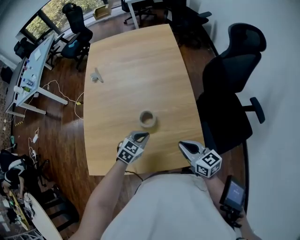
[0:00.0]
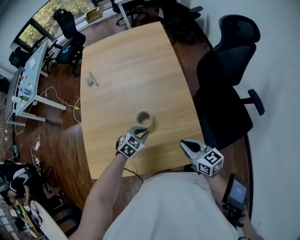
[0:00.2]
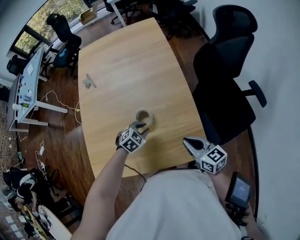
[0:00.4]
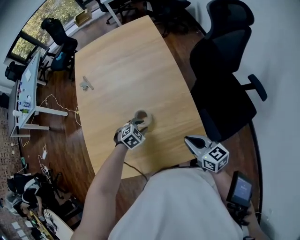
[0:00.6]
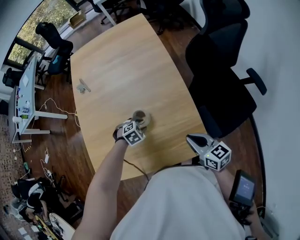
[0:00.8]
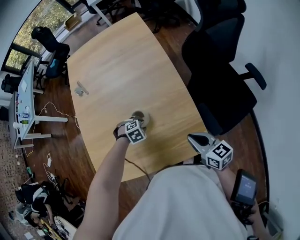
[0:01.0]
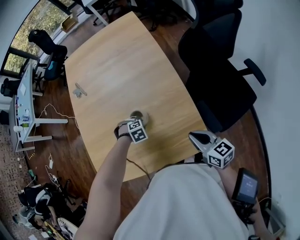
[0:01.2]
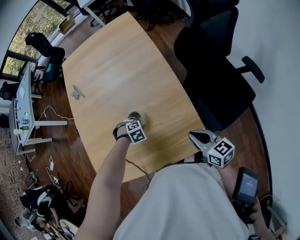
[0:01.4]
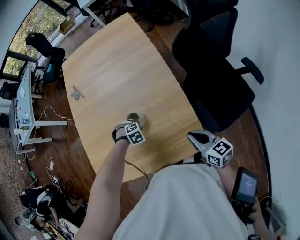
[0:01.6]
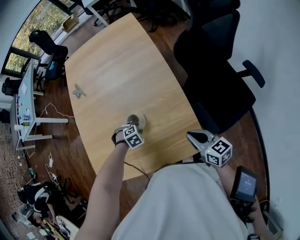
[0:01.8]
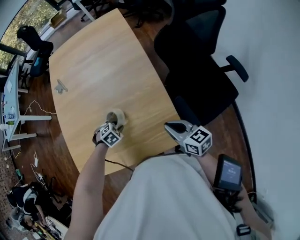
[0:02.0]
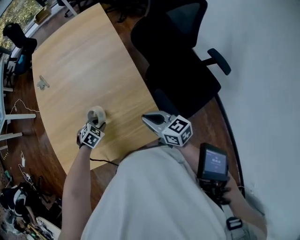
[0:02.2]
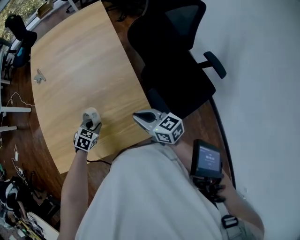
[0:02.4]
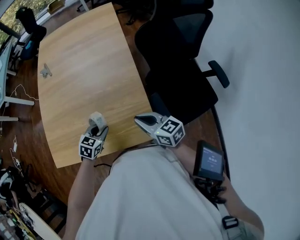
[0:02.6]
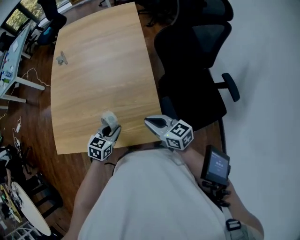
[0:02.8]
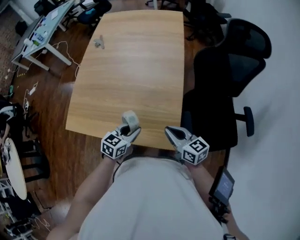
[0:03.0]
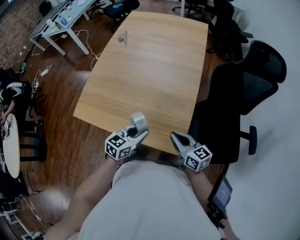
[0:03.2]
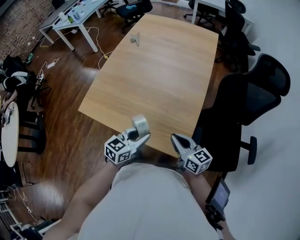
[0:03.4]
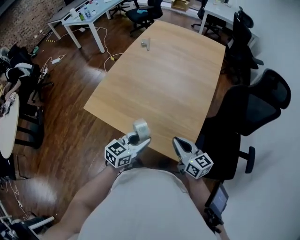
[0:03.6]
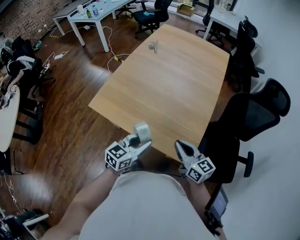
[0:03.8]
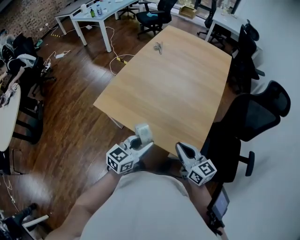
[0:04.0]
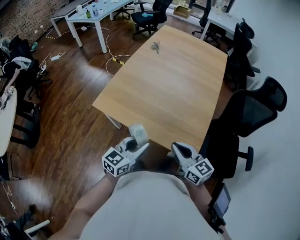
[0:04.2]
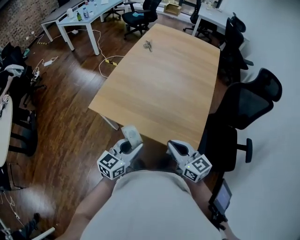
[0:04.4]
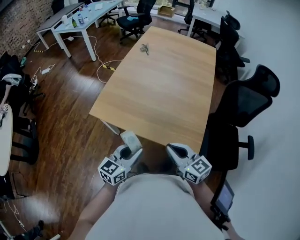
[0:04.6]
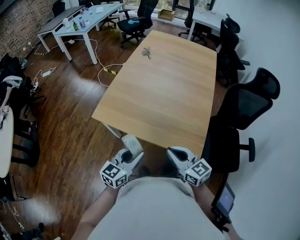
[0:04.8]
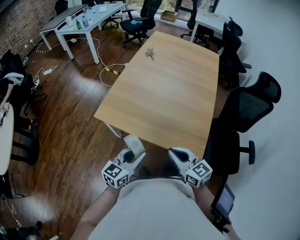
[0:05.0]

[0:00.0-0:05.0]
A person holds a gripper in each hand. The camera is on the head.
0:00.0 to 0:01.6: The left gripper goes about 15 cm downward, tilts its fingers roughly 50 degrees downward, and opens its fingers; the right gripper shifts by some 10 cm.
0:01.6 to 0:03.4: The left gripper heads upward, covering roughly 20 cm, and points its fingers about 70 degrees further upward; the right gripper changes place by some 5 cm, and rotates roughly 30 degrees.
0:03.4 to 0:05.0: Both grippers travel together to the left and backward, roughly 20 cm.

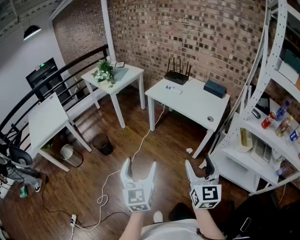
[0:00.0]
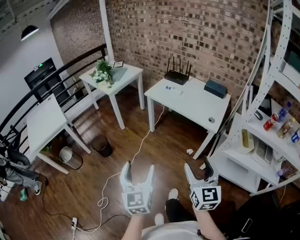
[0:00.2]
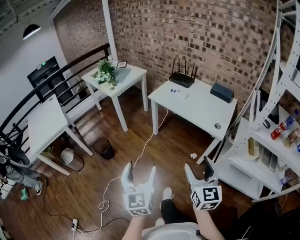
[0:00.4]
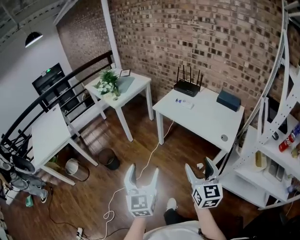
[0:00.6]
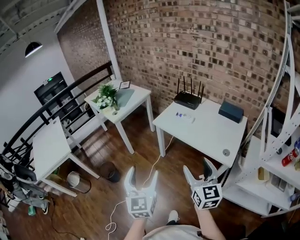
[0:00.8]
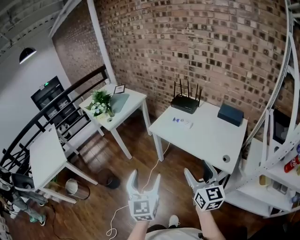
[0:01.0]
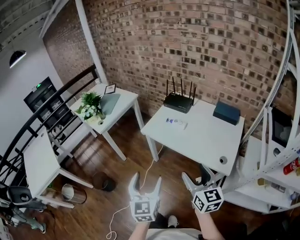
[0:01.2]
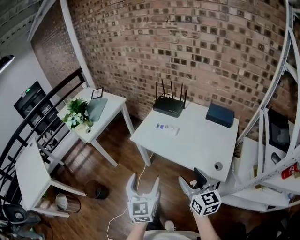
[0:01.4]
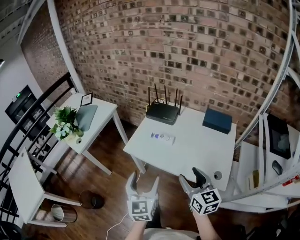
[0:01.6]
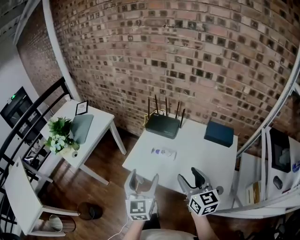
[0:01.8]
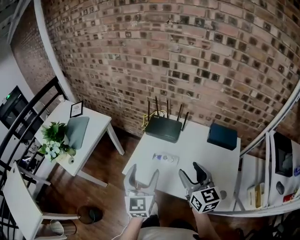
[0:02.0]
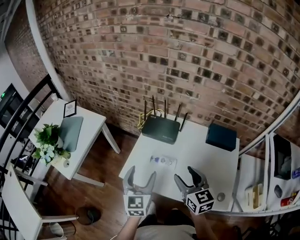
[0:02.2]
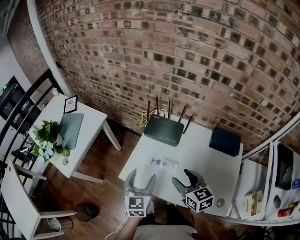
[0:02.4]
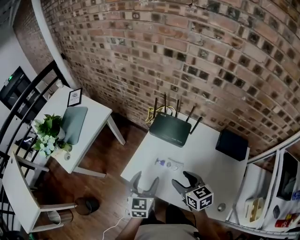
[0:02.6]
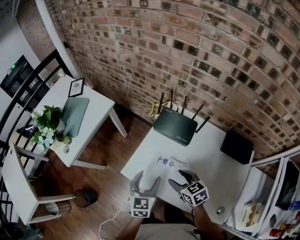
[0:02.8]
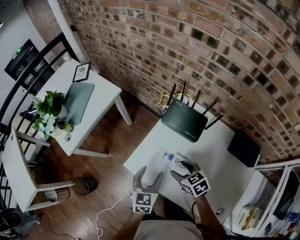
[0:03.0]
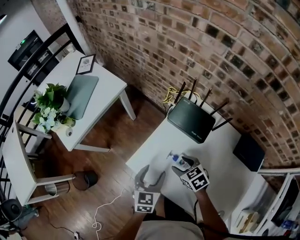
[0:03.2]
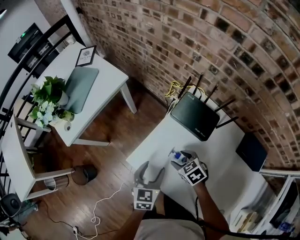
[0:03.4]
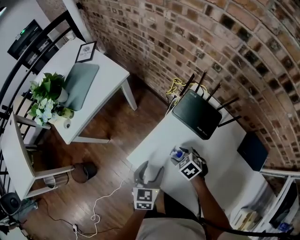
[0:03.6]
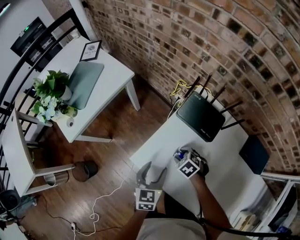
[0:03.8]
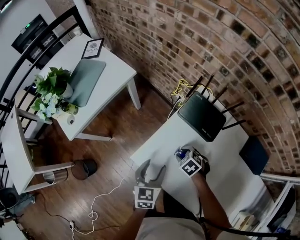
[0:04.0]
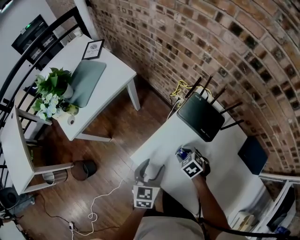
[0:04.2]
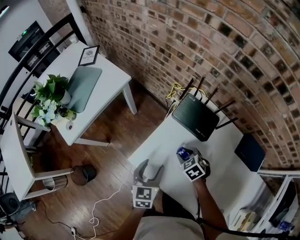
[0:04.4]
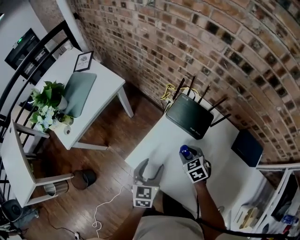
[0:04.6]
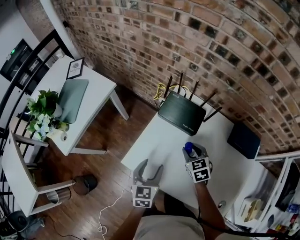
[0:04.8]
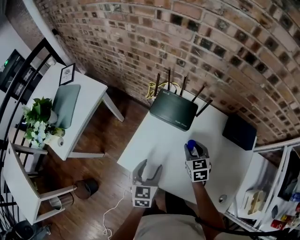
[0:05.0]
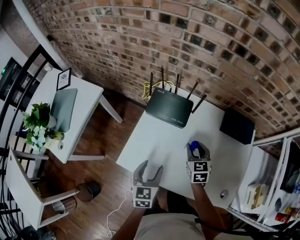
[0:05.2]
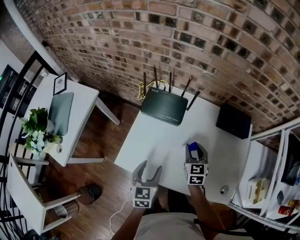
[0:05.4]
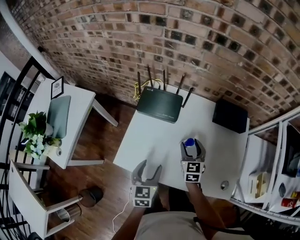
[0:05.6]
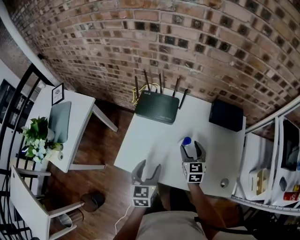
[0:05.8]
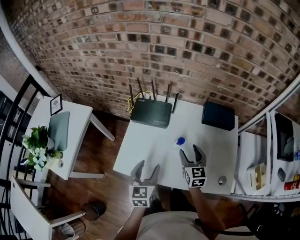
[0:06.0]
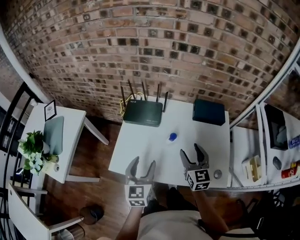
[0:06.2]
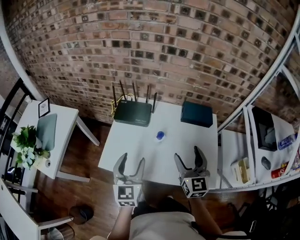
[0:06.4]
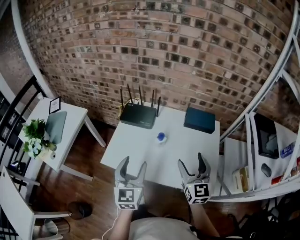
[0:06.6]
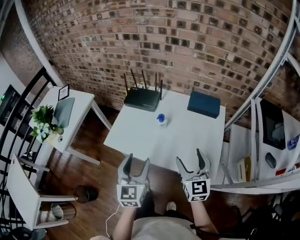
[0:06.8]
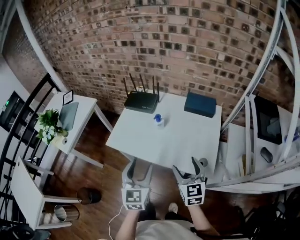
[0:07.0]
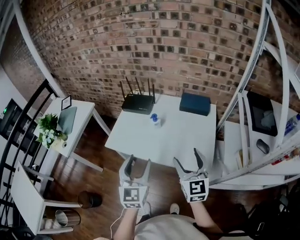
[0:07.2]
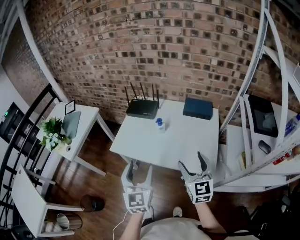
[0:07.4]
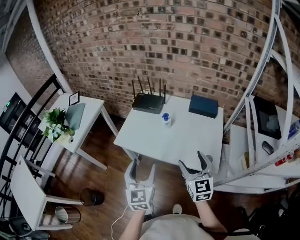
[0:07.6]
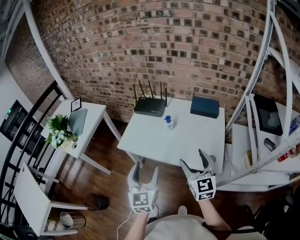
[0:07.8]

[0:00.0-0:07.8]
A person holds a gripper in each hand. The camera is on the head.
0:00.0 to 0:01.6: The two grippers travel together, forward, some 50 cm.
0:01.6 to 0:03.2: Both grippers move forward and downward, some 40 cm. The right gripper tips its fingers downward by roughly 40 degrees; the left gripper rotates approximately 20 degrees.
0:03.2 to 0:04.6: The right gripper reaches some 10 cm downward, then returns, and closes its fingers.
0:04.6 to 0:06.2: The left gripper shifts by approximately 15 cm, and turns by about 20 degrees; the right gripper ends up about 25 cm from where it was, angles its fingers upward, by approximately 40 degrees, and opens its fingers.
0:06.2 to 0:07.8: Both grippers move backward, approximately 25 cm.

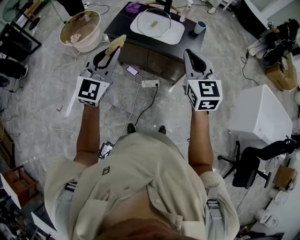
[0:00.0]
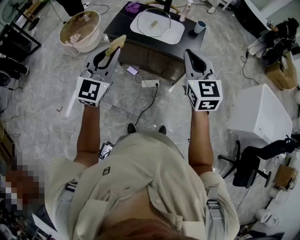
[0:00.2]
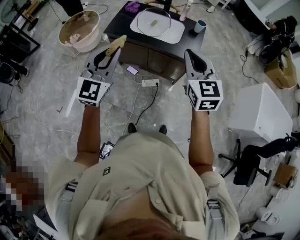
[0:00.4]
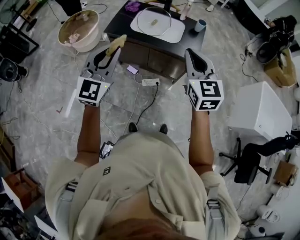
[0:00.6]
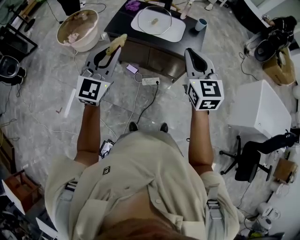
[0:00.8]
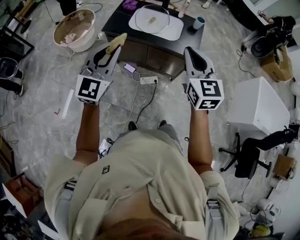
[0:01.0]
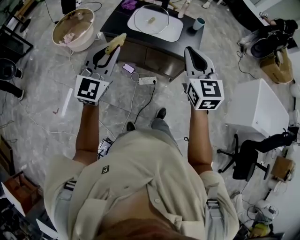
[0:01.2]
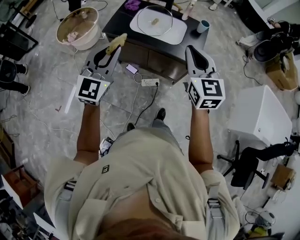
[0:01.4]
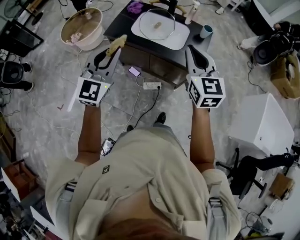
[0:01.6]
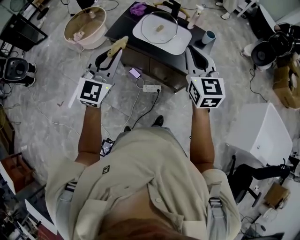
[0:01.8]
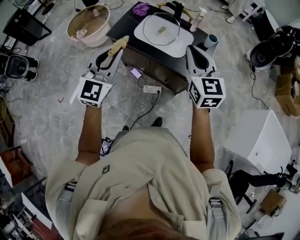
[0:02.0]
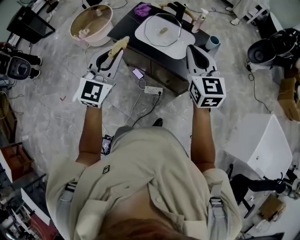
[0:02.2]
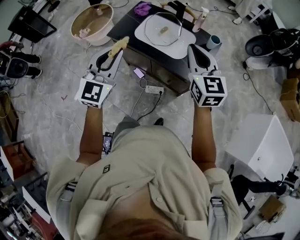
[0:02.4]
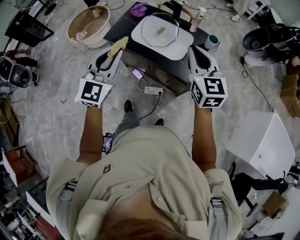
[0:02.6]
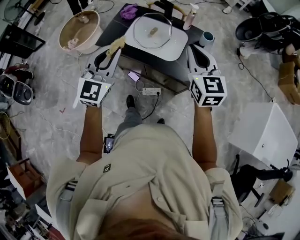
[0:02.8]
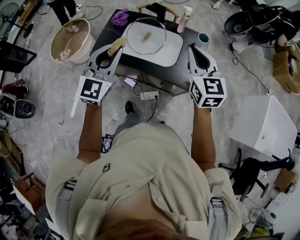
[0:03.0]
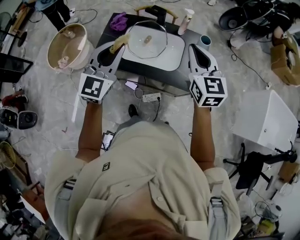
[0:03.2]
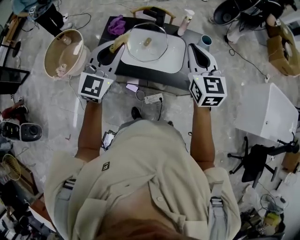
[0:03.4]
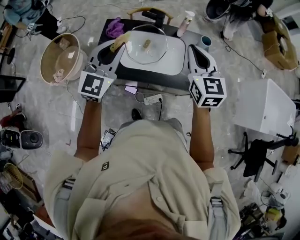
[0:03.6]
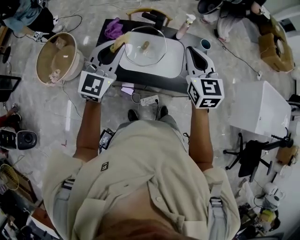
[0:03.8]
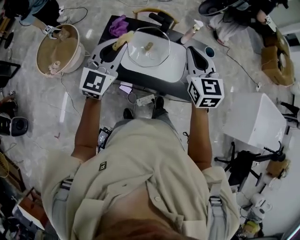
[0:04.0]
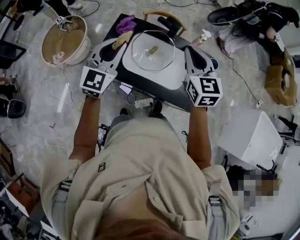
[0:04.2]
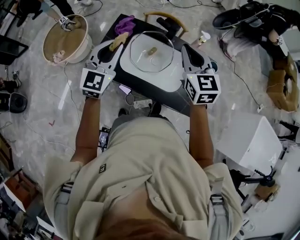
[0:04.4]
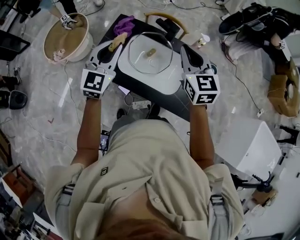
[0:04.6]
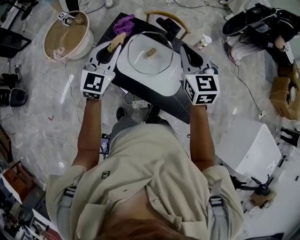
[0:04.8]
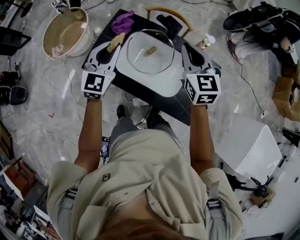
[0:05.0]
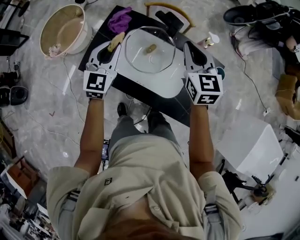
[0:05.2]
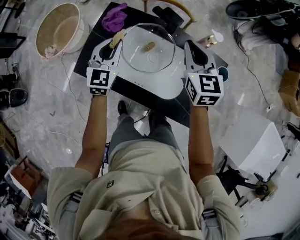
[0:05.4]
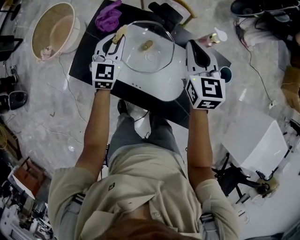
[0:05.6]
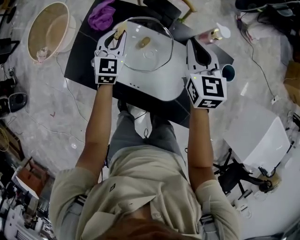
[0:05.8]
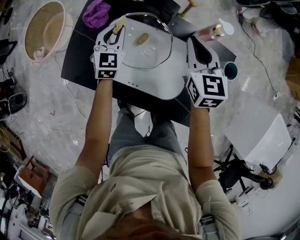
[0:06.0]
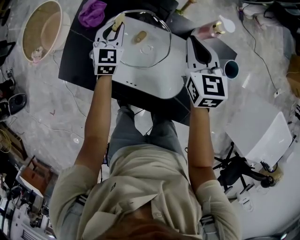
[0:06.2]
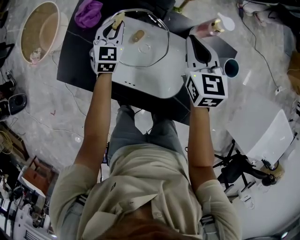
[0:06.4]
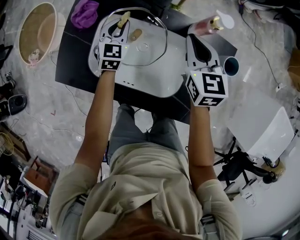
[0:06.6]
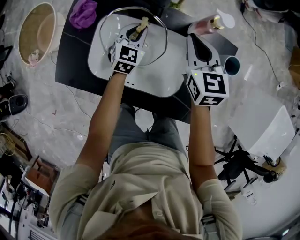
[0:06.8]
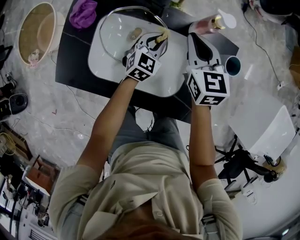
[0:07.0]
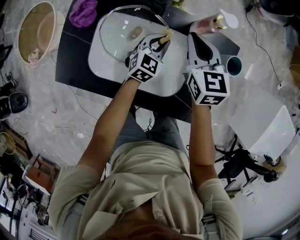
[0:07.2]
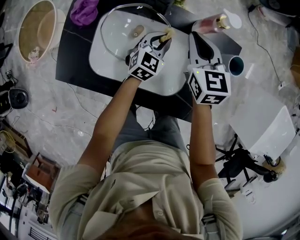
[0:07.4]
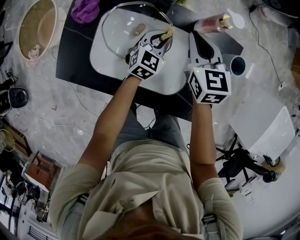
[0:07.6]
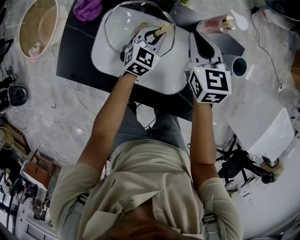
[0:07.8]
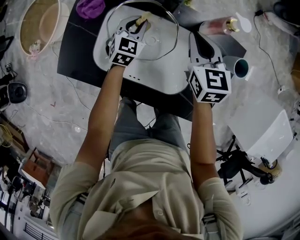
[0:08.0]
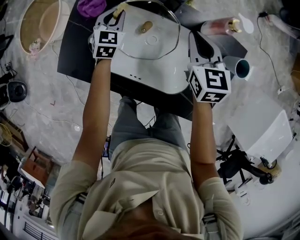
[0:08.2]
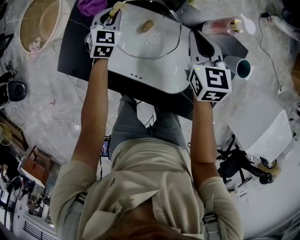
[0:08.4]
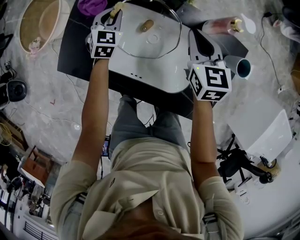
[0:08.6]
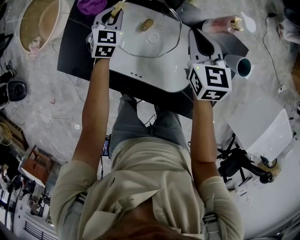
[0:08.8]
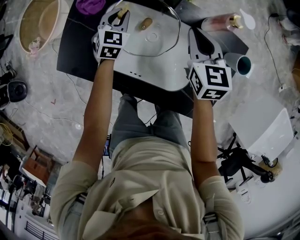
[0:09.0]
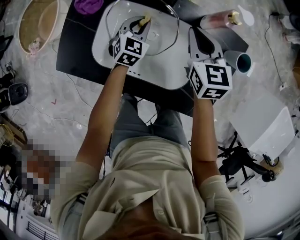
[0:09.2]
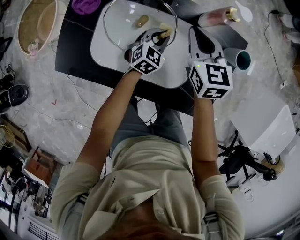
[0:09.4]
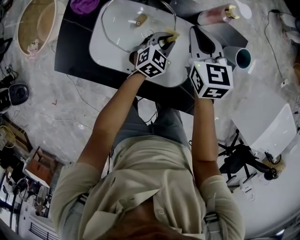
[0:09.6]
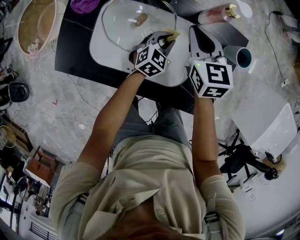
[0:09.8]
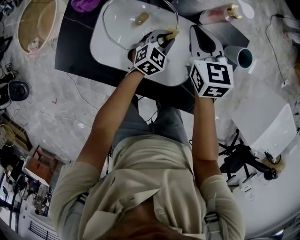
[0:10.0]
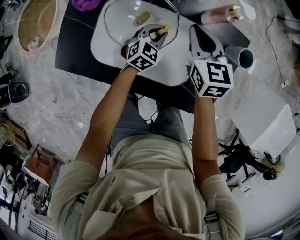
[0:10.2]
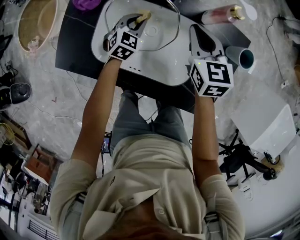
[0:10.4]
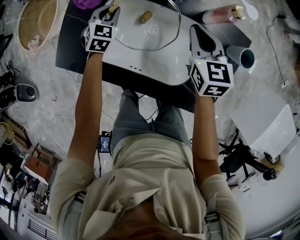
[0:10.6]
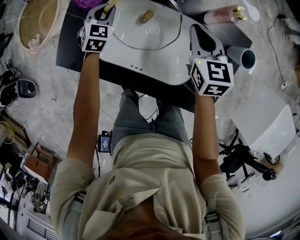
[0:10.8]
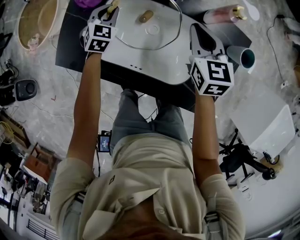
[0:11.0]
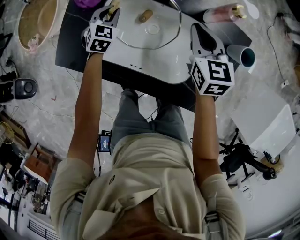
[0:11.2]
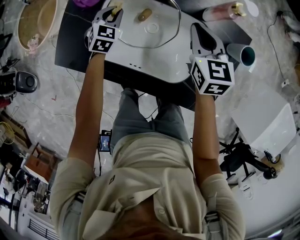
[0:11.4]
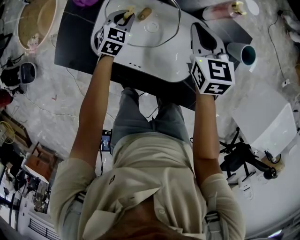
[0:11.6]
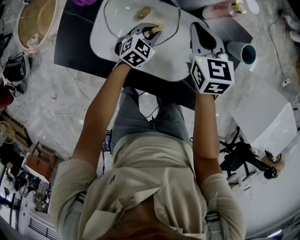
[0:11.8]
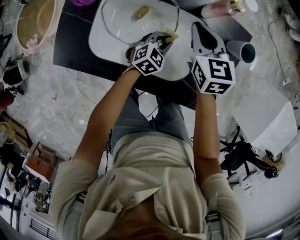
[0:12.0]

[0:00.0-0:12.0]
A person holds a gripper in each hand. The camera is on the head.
0:00.0 to 0:01.6: Both grippers move forward, roughly 10 cm.
0:01.6 to 0:03.0: Both grippers travel together forward, roughly 20 cm.
0:03.0 to 0:04.4: Both grippers move forward and to the left, about 25 cm.
0:04.4 to 0:06.0: The left gripper travels downward and forward by roughly 35 cm, and swivels roughly 20 degrees. Meanwhile the right gripper moves downward, forward and to the right, approximately 30 cm.
0:06.0 to 0:07.6: The left gripper travels to the right and downward by roughly 20 cm, and swivels approximately 30 degrees; the right gripper heads downward, covering about 5 cm.
0:07.6 to 0:09.0: The left gripper goes about 20 cm to the left, and rotates roughly 20 degrees.
0:09.0 to 0:10.4: The left gripper heads to the right and downward, covering about 10 cm.
0:10.4 to 0:12.0: The left gripper moves to the right and backward, roughly 15 cm.
